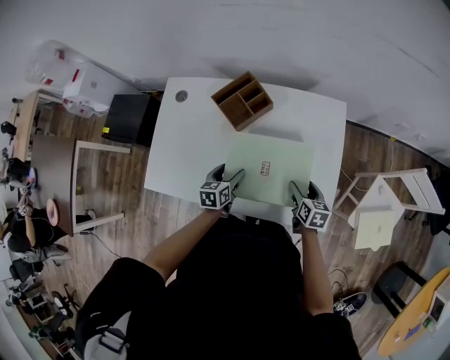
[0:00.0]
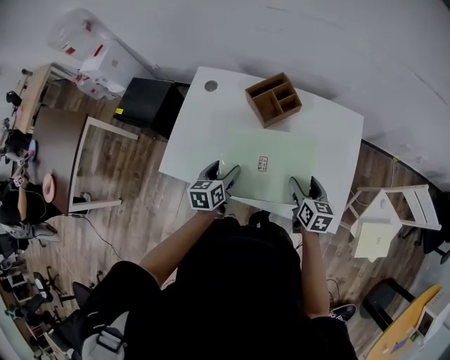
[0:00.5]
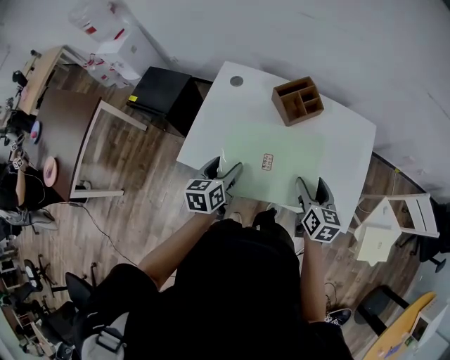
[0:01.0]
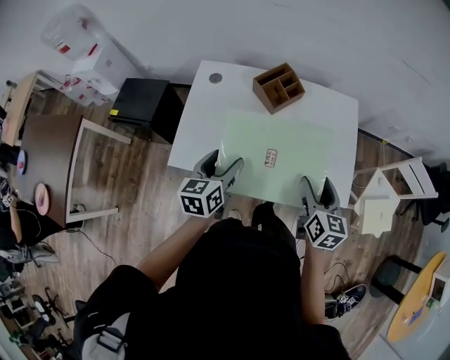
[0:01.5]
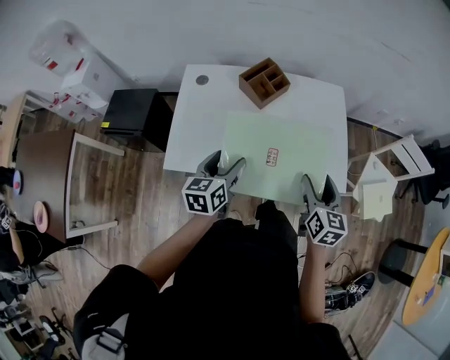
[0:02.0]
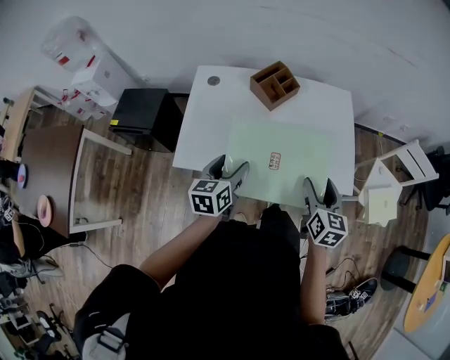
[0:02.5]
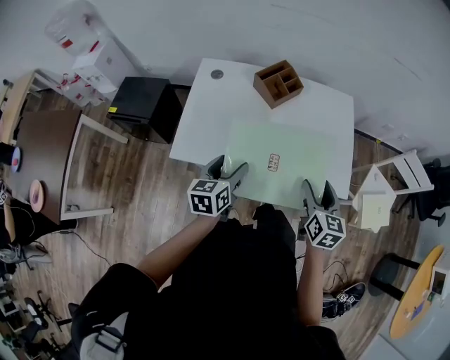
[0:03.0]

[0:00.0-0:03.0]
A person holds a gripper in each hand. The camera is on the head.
0:00.0 to 0:01.5: Both grippers move upward, to the left and backward, some 30 cm. The right gripper rotates some 20 degrees.
0:01.5 to 0:03.0: Both grippers move backward, about 5 cm.

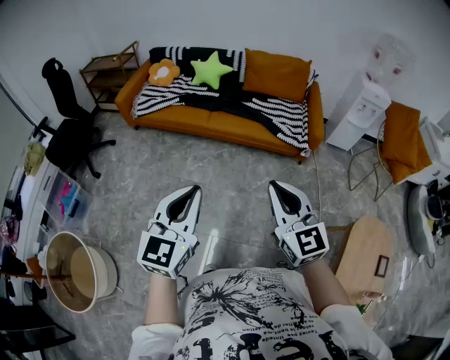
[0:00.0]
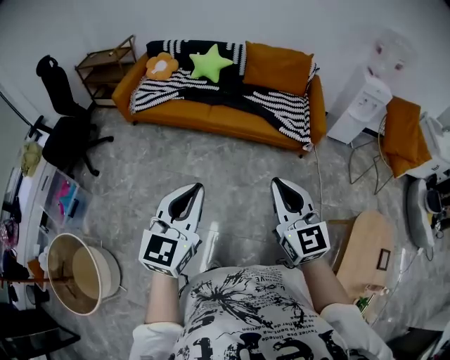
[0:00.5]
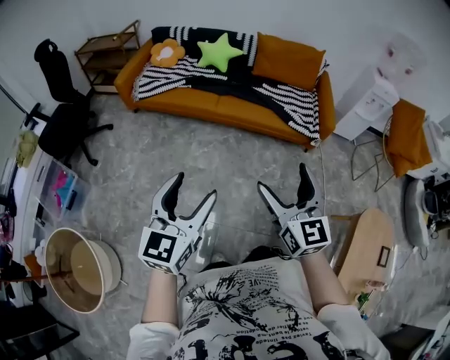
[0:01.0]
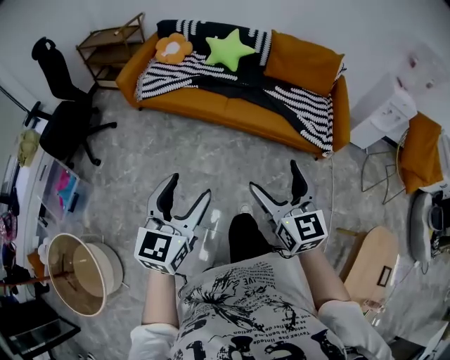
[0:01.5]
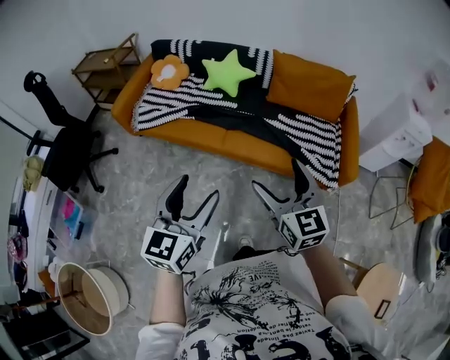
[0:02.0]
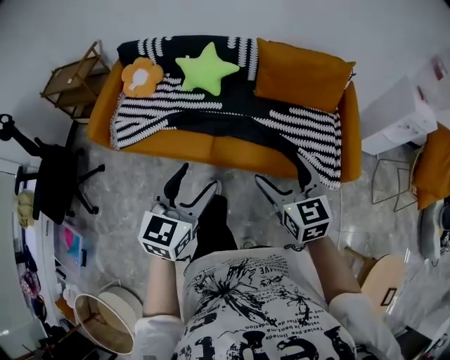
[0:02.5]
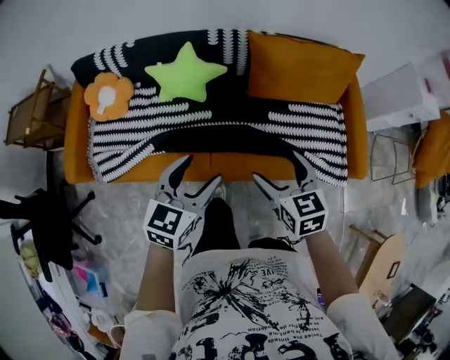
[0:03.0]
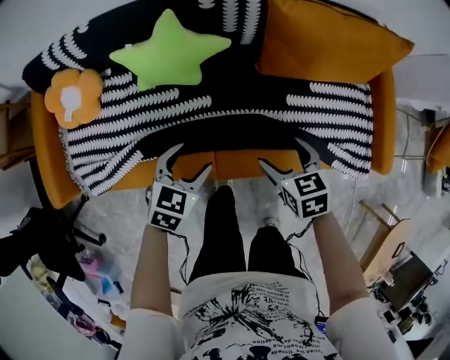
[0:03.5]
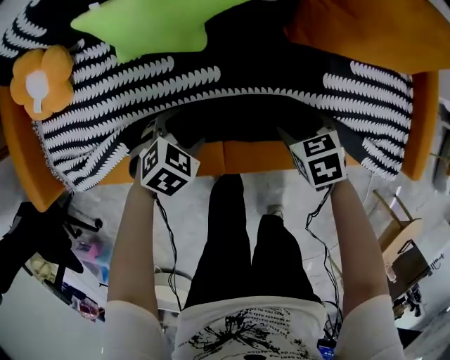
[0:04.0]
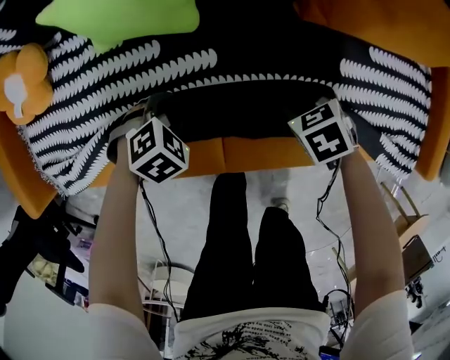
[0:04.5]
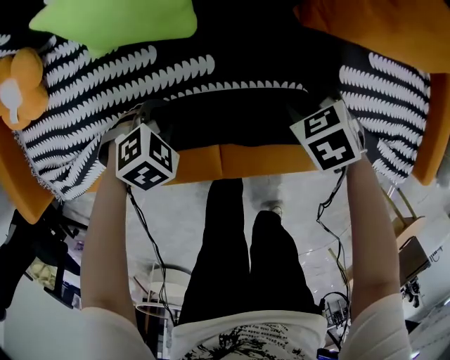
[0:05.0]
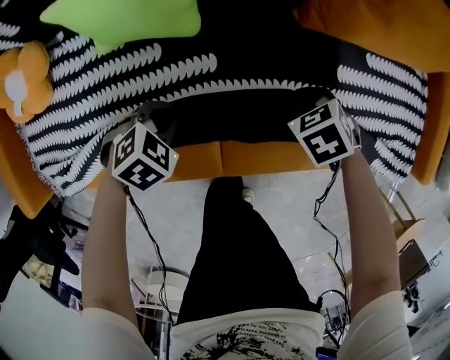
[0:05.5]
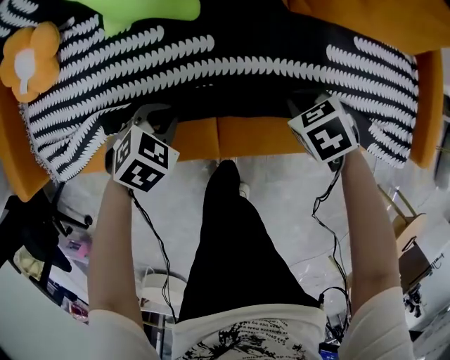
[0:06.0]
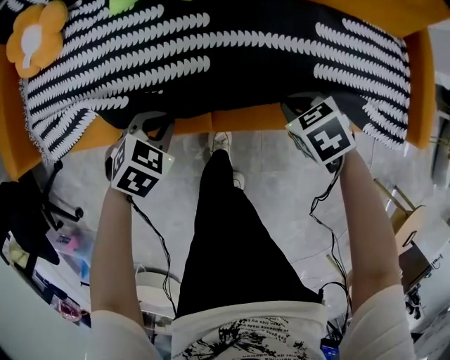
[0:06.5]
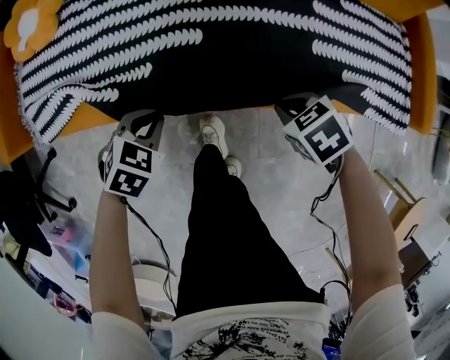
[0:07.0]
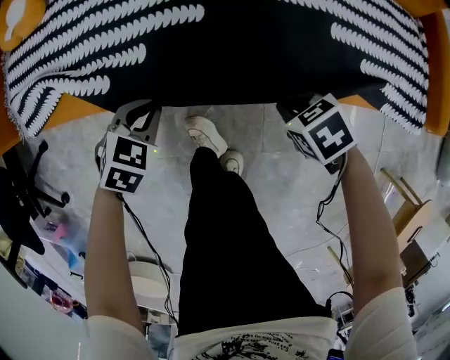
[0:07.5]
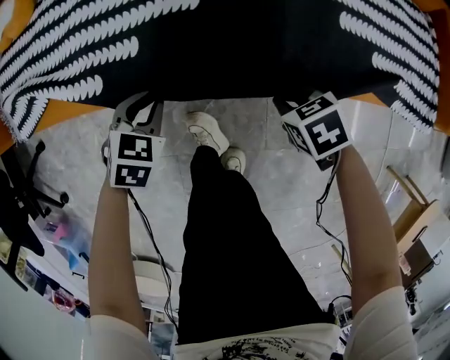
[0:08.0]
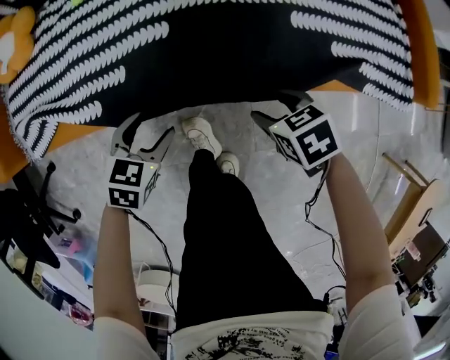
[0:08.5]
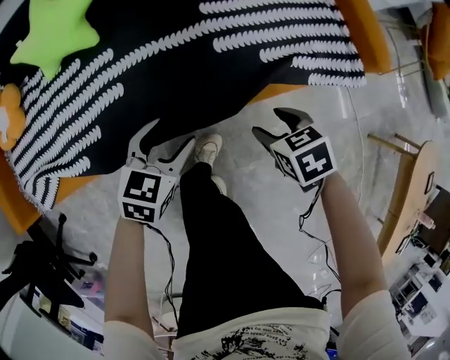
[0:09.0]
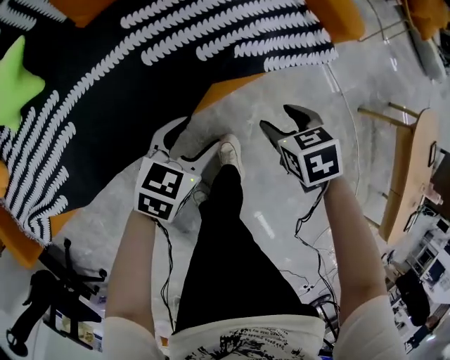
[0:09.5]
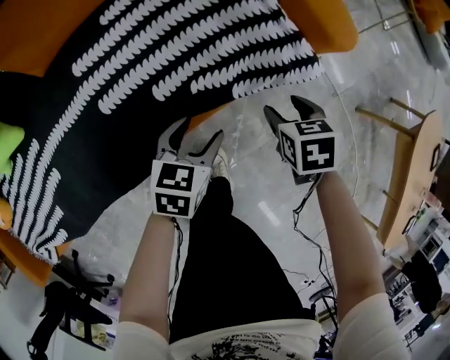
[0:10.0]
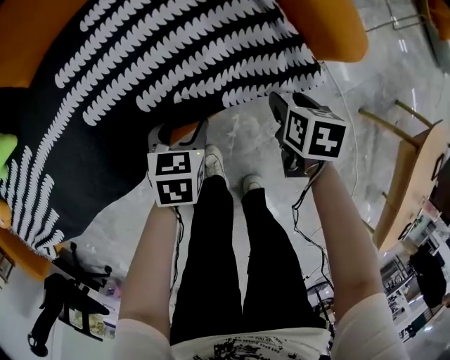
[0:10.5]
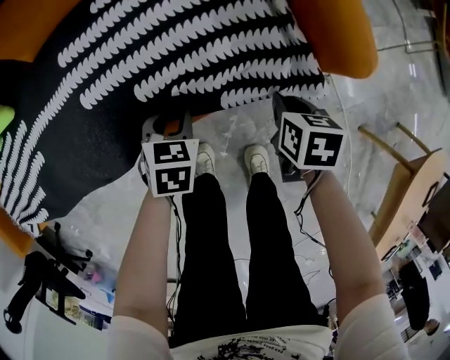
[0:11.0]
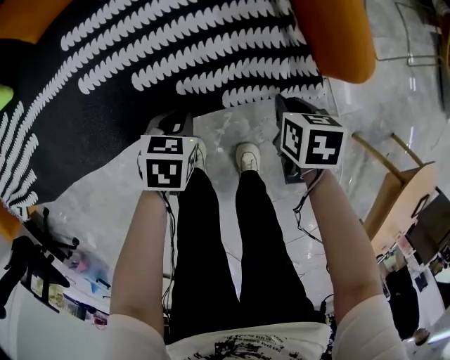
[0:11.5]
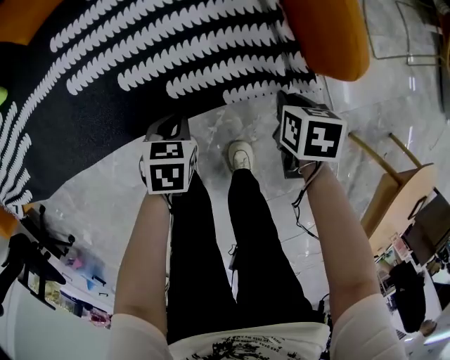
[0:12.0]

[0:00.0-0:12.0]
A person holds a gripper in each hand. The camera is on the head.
0:00.0 to 0:02.0: The two grippers travel together, forward, about 40 cm. The right gripper opens, while the left gripper opens up.
0:02.0 to 0:04.0: Both grippers are carried some 60 cm. The right gripper shifts about 60 cm downward, and tilts its fingers roughly 60 degrees downward, while the left gripper tilts its fingers about 50 degrees downward.
0:04.0 to 0:06.0: The left gripper moves about 5 cm, and closes up. The right gripper closes its fingers.
0:06.0 to 0:08.0: The left gripper changes place by roughly 20 cm, and changes its angle by about 20 degrees, while the right gripper ends up roughly 25 cm from where it was.
0:08.0 to 0:10.0: The pair of grippers is taken approximately 50 cm. The left gripper swivels roughly 30 degrees, and opens up; the right gripper rolls clockwise, seen from behind, by some 50 degrees, and opens its fingers.
0:10.0 to 0:12.0: The left gripper heads downward, covering some 10 cm, swivels roughly 30 degrees, and closes; the right gripper goes some 15 cm to the right, forward and downward, and closes up.

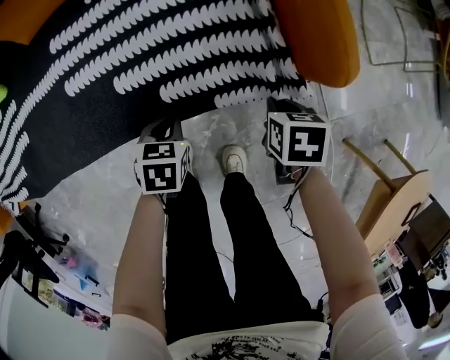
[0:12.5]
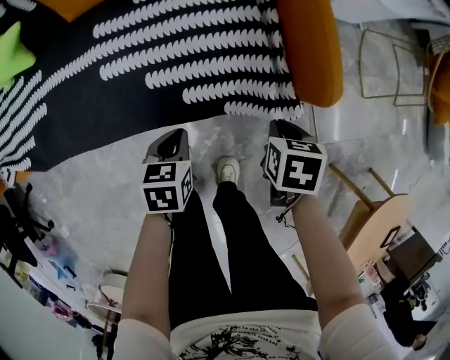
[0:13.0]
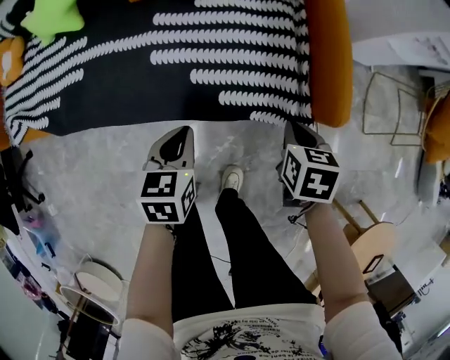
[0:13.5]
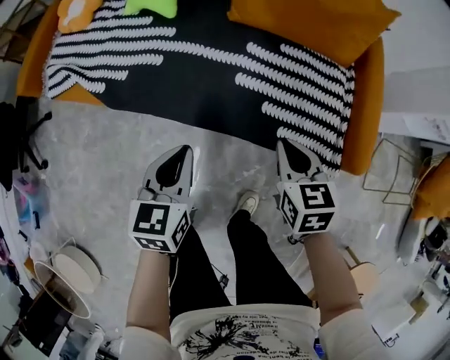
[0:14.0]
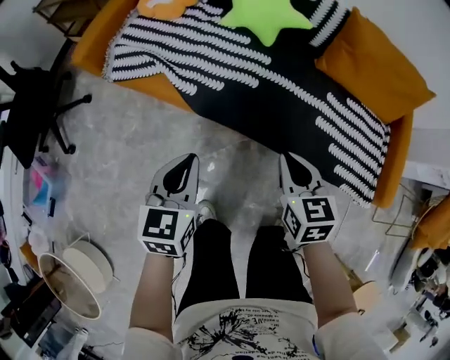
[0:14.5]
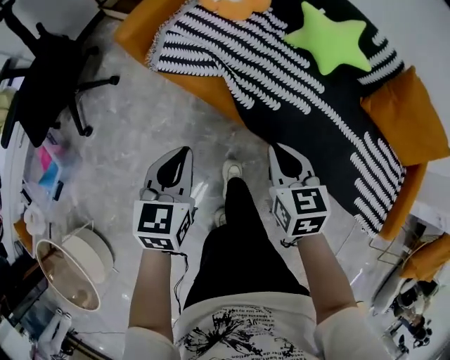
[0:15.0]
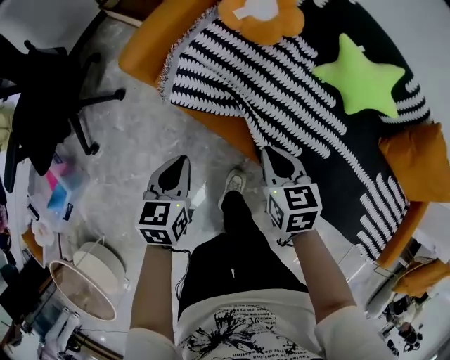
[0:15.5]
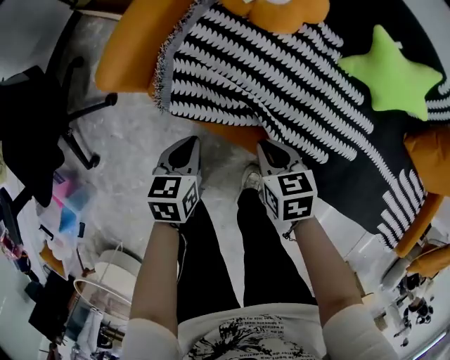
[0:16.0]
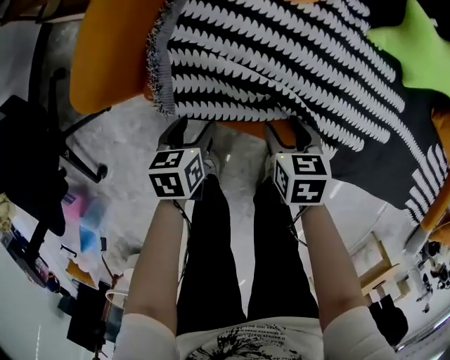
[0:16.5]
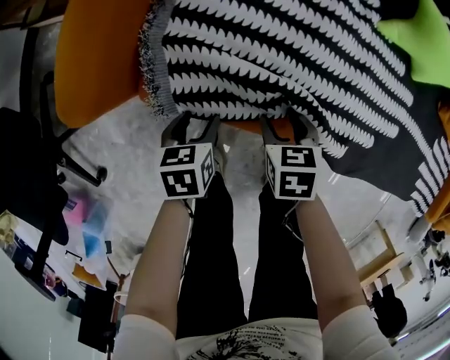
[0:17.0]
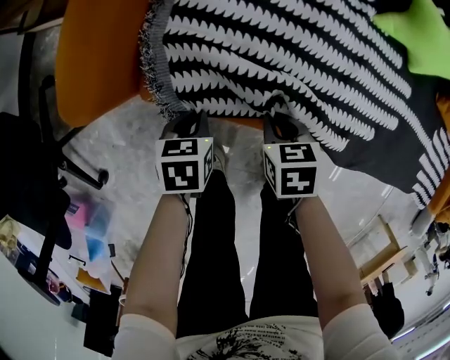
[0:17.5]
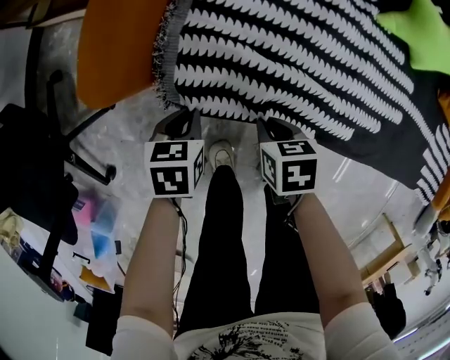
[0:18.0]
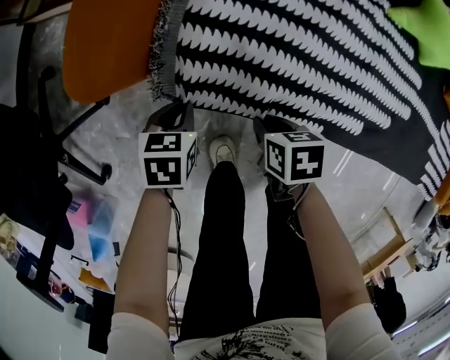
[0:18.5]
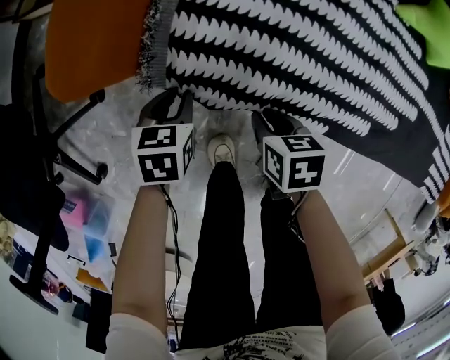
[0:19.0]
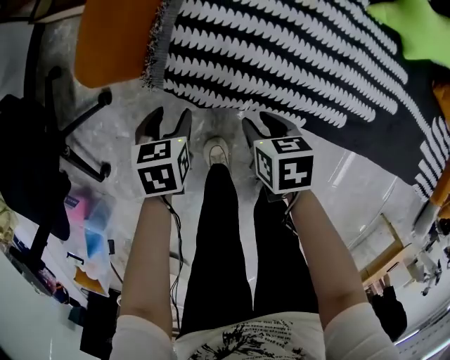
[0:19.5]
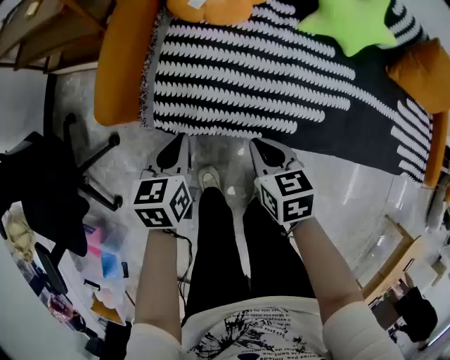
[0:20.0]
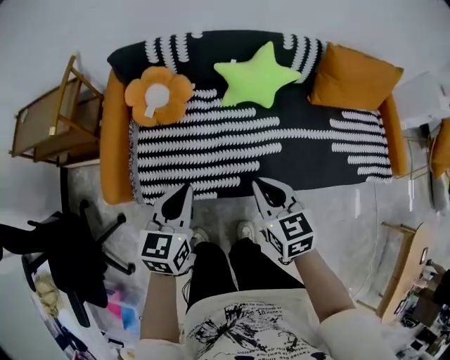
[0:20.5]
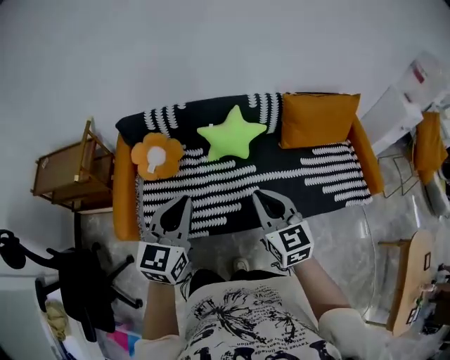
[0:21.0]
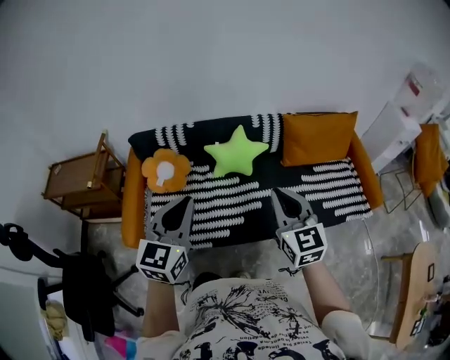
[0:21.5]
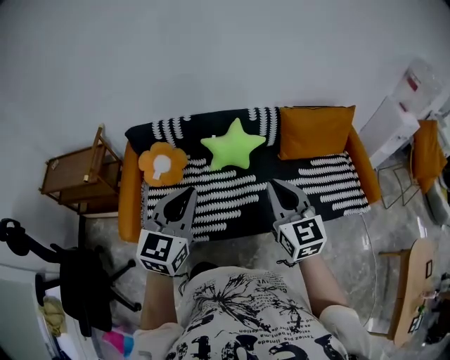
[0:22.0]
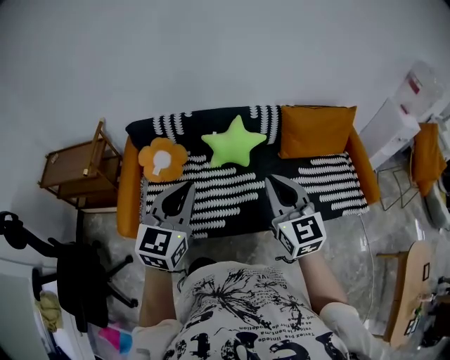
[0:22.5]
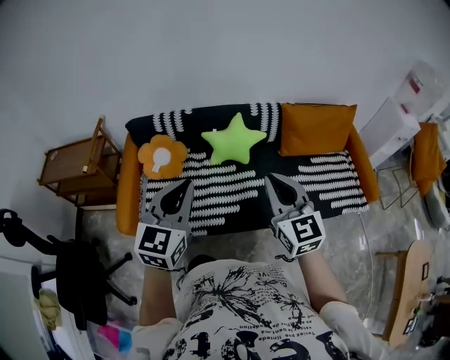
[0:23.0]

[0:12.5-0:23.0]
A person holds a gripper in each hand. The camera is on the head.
0:12.5 to 0:14.5: The two grippers travel together, roughly 60 cm. The left gripper tilts its fingers approximately 40 degrees upward, while the right gripper points its fingers roughly 30 degrees further upward.
0:14.5 to 0:16.5: The pair of grippers is taken to the left and forward, approximately 60 cm. The two grippers go roughly 30 cm downward. The left gripper swivels approximately 30 degrees, and opens up; the right gripper swivels roughly 20 degrees, and opens.
0:16.5 to 0:19.0: The right gripper shifts approximately 15 cm downward, to the left and backward, while the left gripper is displaced downward and to the left by about 15 cm, and closes up.
0:19.0 to 0:21.0: The pair of grippers is taken about 40 cm. The grippers both shift upward by about 70 cm. The left gripper angles its fingers upward, by some 50 degrees, and opens and closes again; the right gripper points its fingers roughly 50 degrees further upward.
0:21.0 to 0:23.0: The grippers both shift upward by about 5 cm.

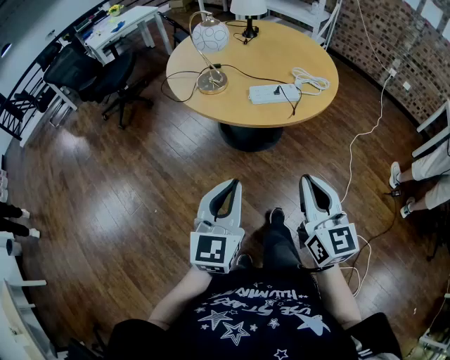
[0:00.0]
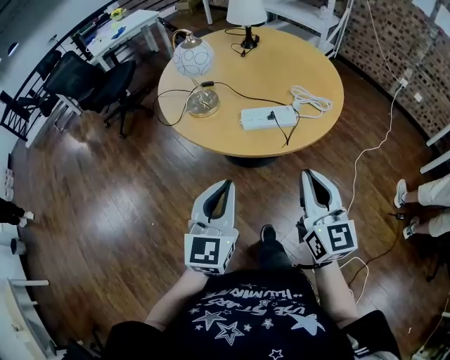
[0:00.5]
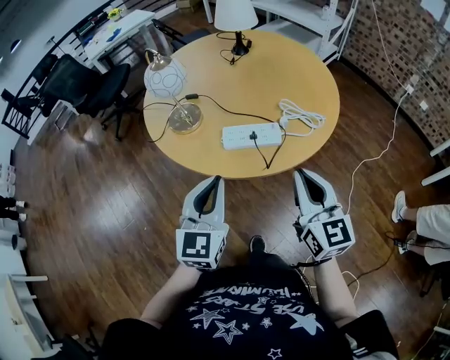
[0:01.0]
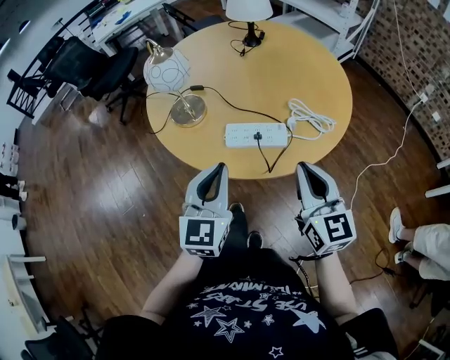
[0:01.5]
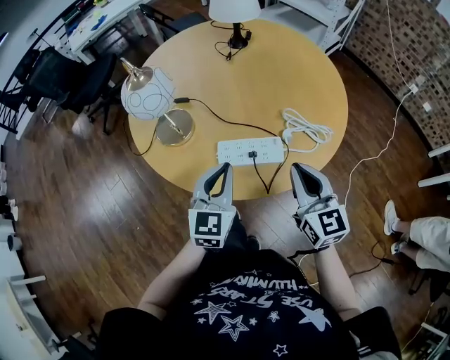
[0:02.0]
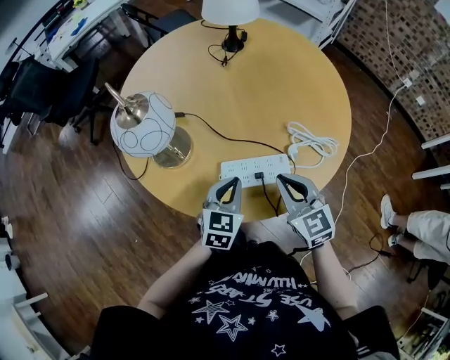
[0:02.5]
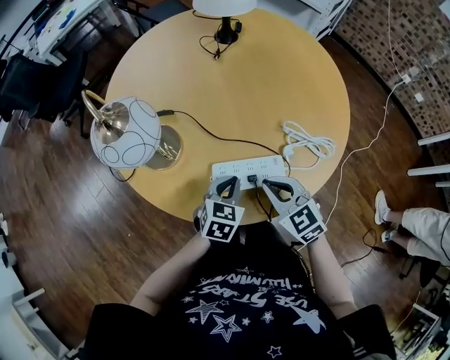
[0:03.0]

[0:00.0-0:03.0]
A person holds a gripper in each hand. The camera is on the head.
0:00.0 to 0:01.5: The grippers both shift forward and to the right by about 30 cm.
0:01.5 to 0:03.0: The left gripper goes approximately 25 cm downward and forward, and points its fingers some 30 degrees further downward; the right gripper is displaced downward, forward and to the left by about 20 cm, and turns by some 40 degrees.
